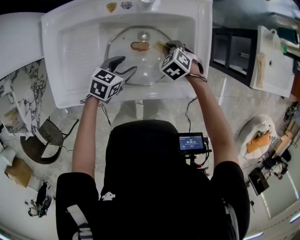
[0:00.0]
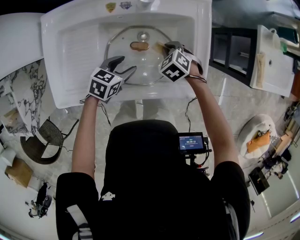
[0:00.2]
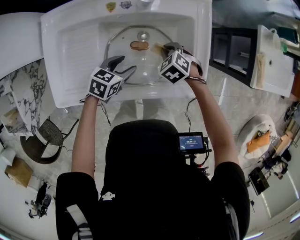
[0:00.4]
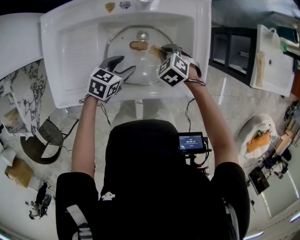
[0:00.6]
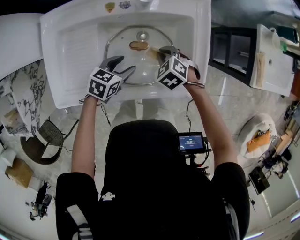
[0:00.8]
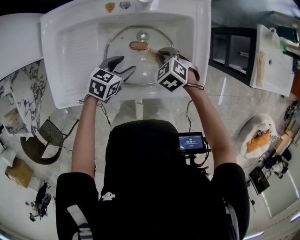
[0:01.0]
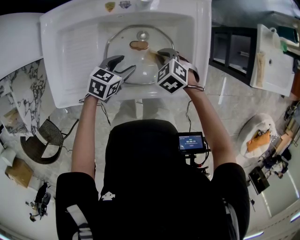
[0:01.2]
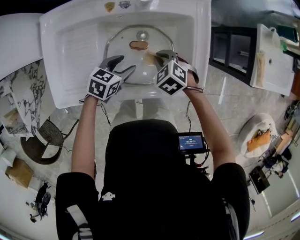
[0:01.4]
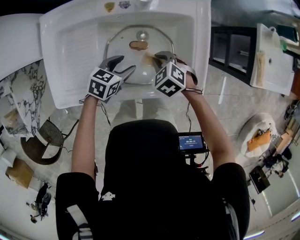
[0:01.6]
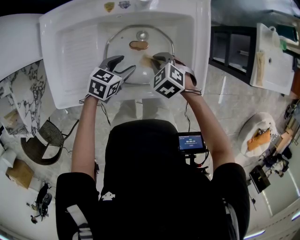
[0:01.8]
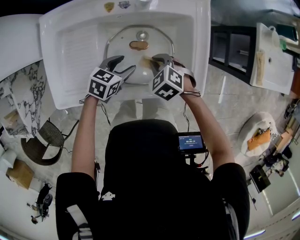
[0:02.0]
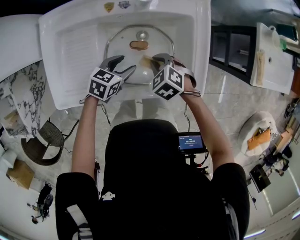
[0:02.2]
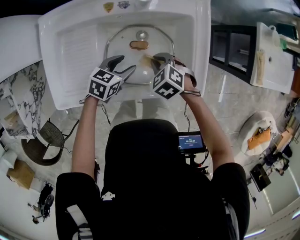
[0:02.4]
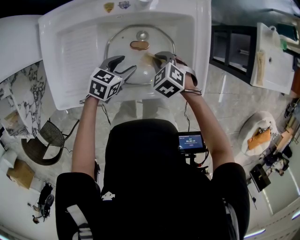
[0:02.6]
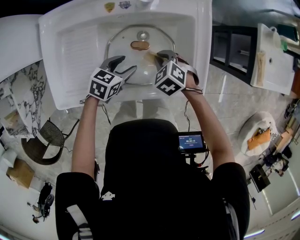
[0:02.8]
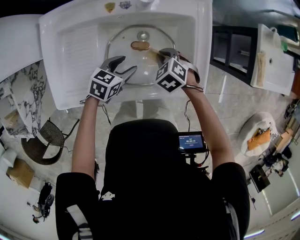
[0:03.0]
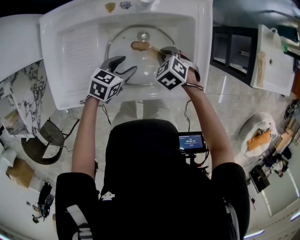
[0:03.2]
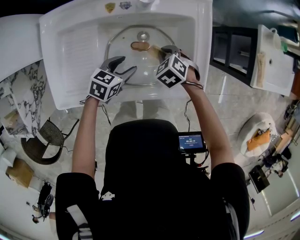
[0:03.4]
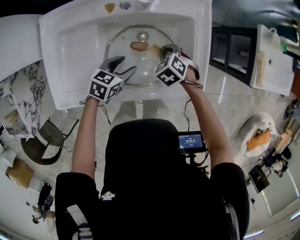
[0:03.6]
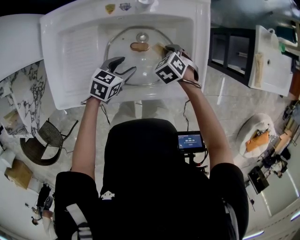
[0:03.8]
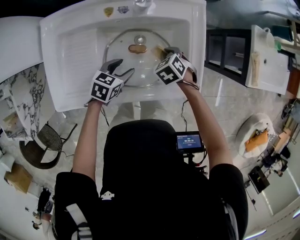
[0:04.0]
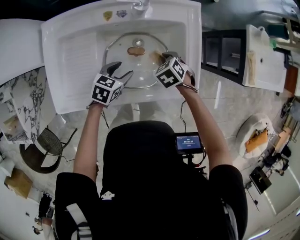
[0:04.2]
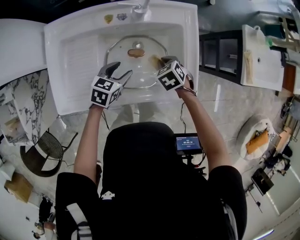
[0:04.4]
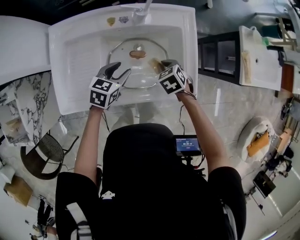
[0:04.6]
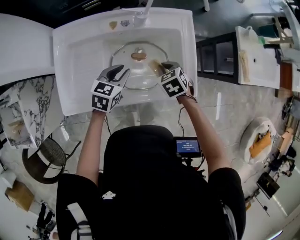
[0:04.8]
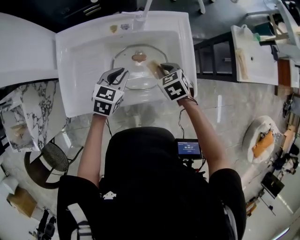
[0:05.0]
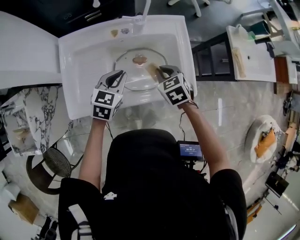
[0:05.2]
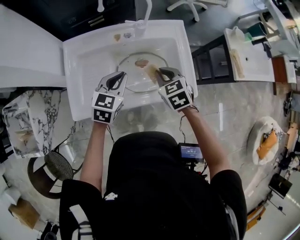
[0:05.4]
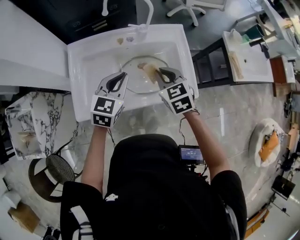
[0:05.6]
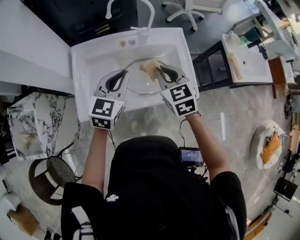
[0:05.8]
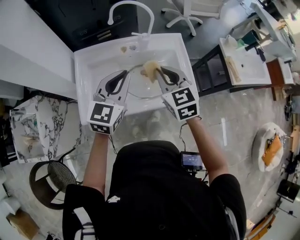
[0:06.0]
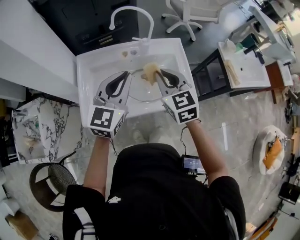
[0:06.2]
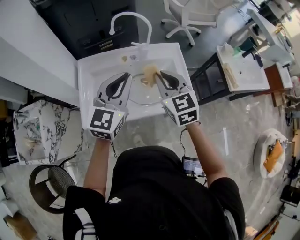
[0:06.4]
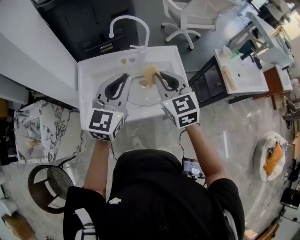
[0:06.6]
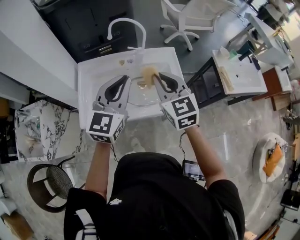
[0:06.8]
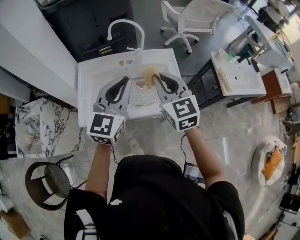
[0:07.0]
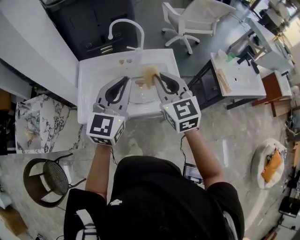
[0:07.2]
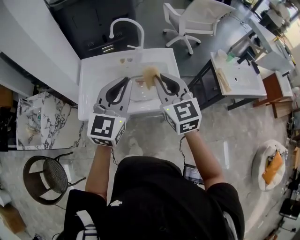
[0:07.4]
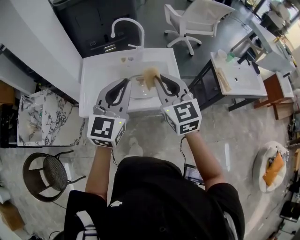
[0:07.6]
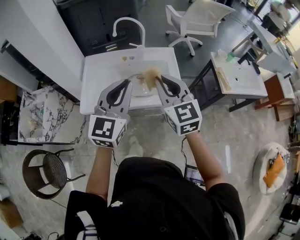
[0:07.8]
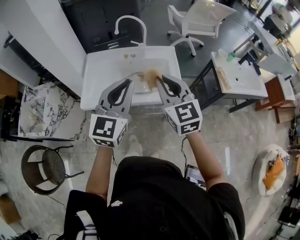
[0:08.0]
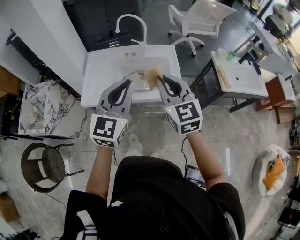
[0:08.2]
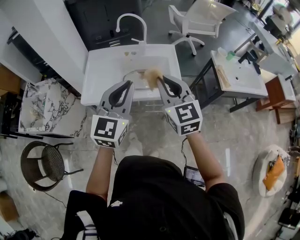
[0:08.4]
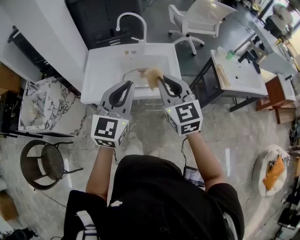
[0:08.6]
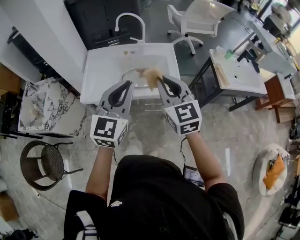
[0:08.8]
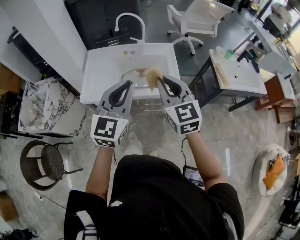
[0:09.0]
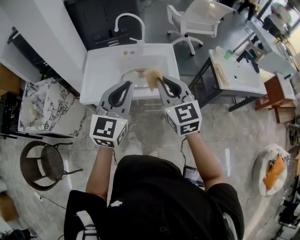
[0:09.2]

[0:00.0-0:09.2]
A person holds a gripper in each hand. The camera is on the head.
0.0 to 1.6 s: The right gripper goes roughly 5 cm backward.
1.6 to 3.0 s: The grippers make only small movements.
3.0 to 4.6 s: The left gripper travels upward by some 5 cm.
4.6 to 6.2 s: The grippers both shift upward by about 30 cm. The right gripper tips its fingers upward by roughly 50 degrees; the left gripper points its fingers some 40 degrees further upward, and closes up.
6.2 to 7.6 s: Both grippers travel together backward, upward and to the right, about 15 cm.
7.6 to 9.2 s: The two grippers go approximately 10 cm backward.

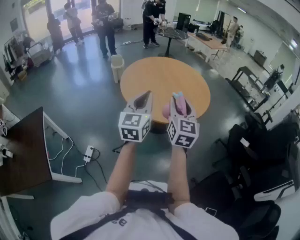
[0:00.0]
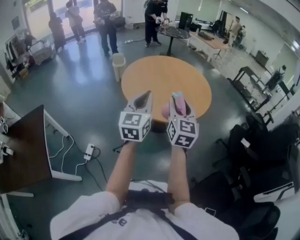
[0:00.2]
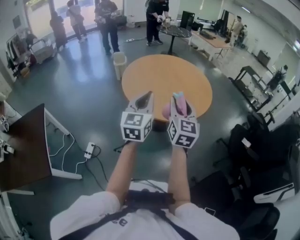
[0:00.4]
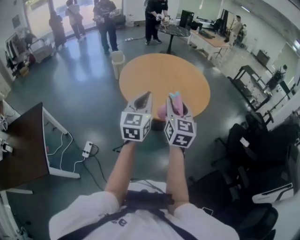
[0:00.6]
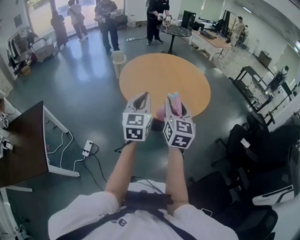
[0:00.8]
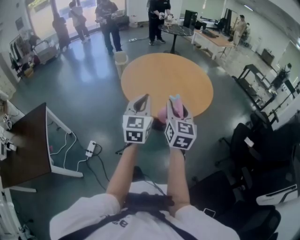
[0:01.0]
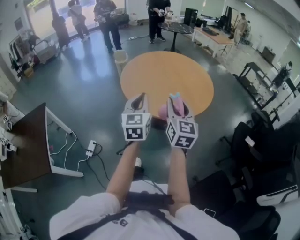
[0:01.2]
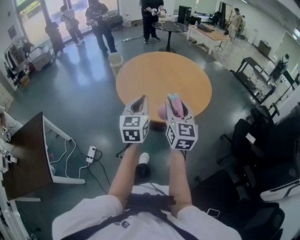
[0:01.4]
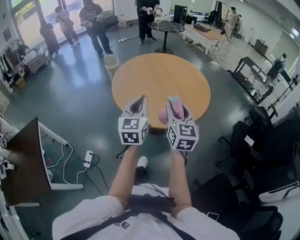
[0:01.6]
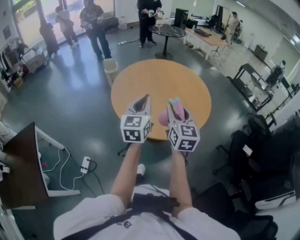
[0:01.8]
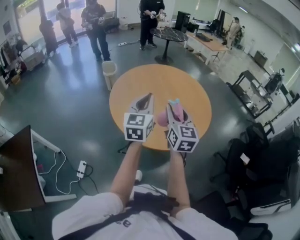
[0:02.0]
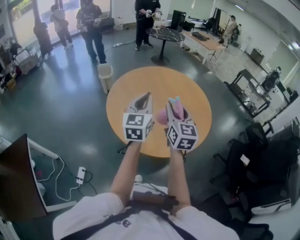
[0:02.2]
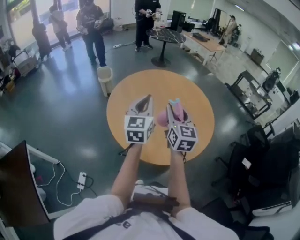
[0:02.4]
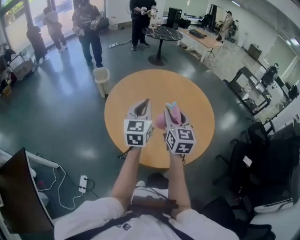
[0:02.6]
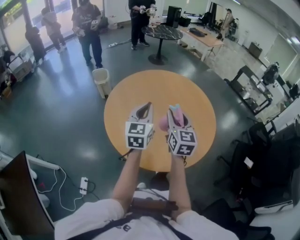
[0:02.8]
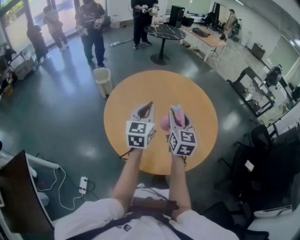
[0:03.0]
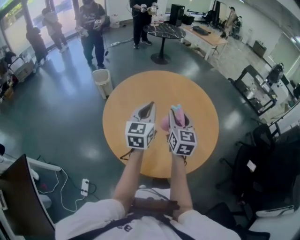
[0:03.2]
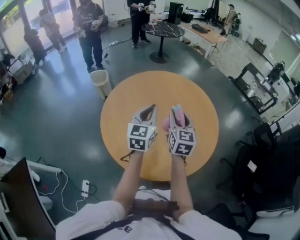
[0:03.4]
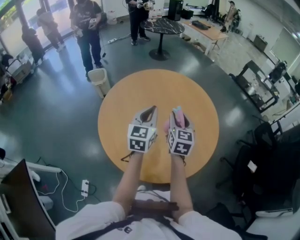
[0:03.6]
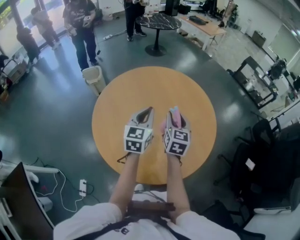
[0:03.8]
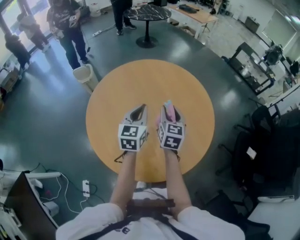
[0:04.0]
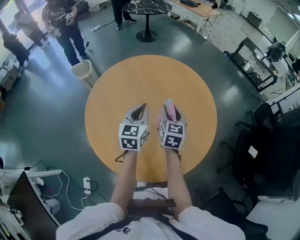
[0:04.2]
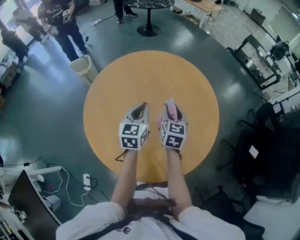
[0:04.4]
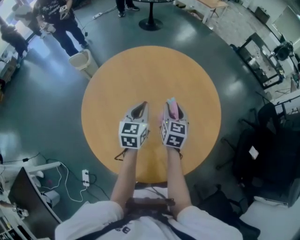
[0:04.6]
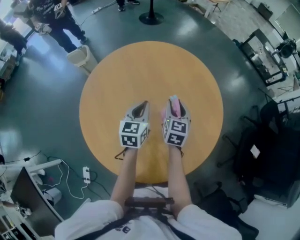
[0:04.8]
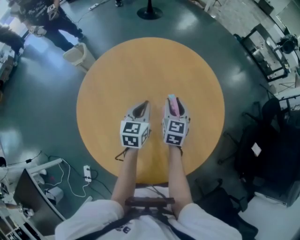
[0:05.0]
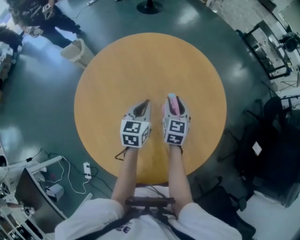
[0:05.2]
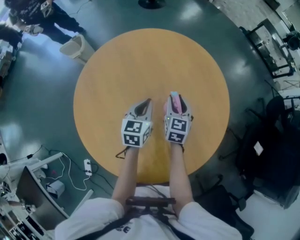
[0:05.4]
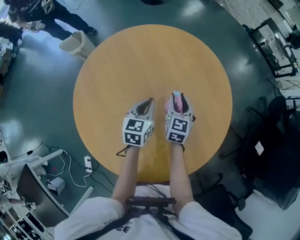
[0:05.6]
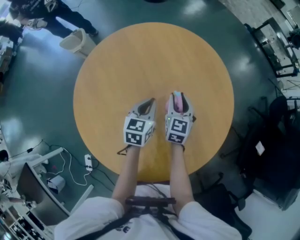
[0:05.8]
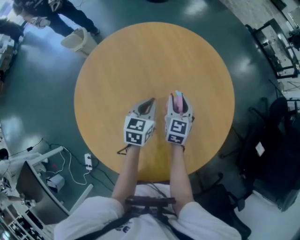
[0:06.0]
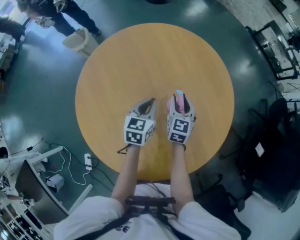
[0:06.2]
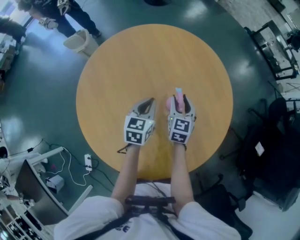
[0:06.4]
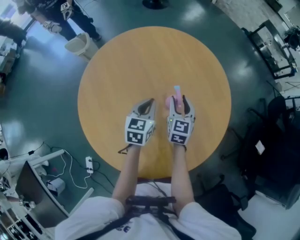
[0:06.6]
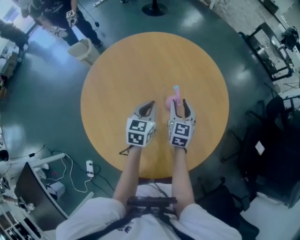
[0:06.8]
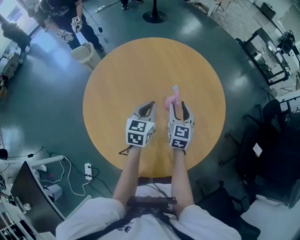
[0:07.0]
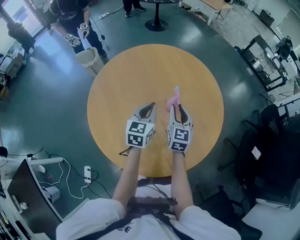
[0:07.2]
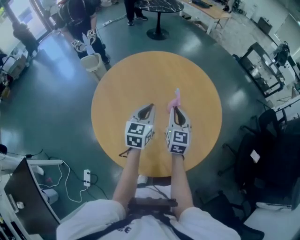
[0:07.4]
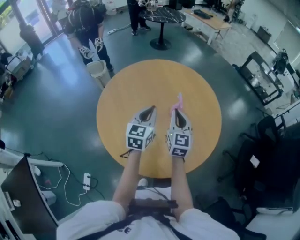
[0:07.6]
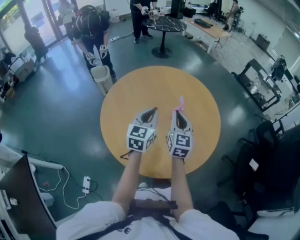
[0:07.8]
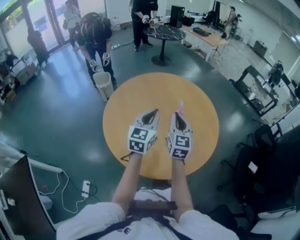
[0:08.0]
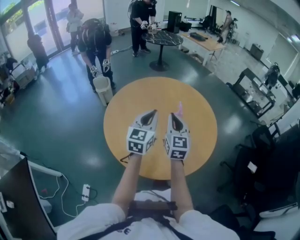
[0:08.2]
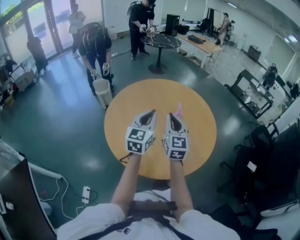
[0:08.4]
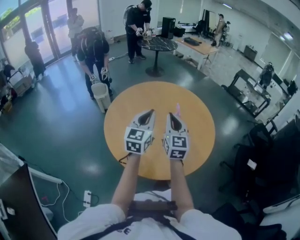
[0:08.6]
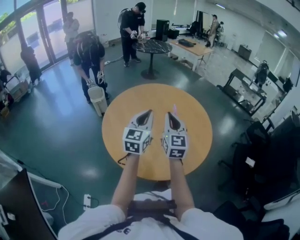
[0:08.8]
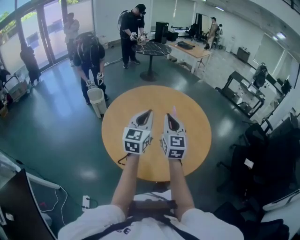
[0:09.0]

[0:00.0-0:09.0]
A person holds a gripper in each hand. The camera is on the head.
0.0 to 1.6 s: The left gripper is displaced forward and downward by about 10 cm, while the right gripper shifts roughly 10 cm forward.
1.6 to 3.0 s: The grippers both shift forward by roughly 30 cm.
3.0 to 4.4 s: The left gripper heads forward, downward and to the right, covering about 20 cm. The right gripper moves forward and downward, about 20 cm, and rotates about 20 degrees.
4.4 to 6.0 s: Both grippers travel together downward and forward, about 15 cm.
6.0 to 7.6 s: Both grippers move upward and backward, roughly 20 cm. The left gripper rotates some 20 degrees, while the right gripper closes its fingers.
7.6 to 9.0 s: The right gripper moves upward, backward and to the left, some 15 cm, while the left gripper is displaced upward and backward by about 15 cm.

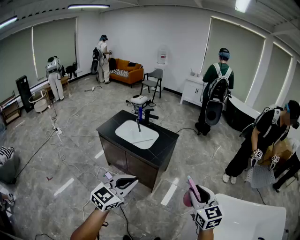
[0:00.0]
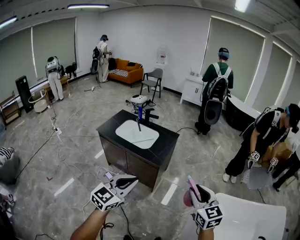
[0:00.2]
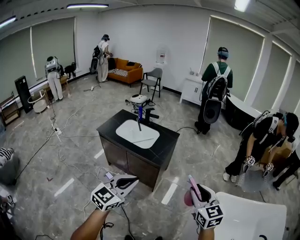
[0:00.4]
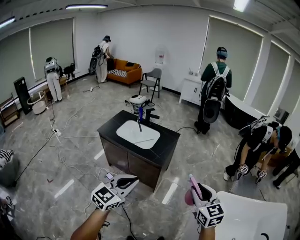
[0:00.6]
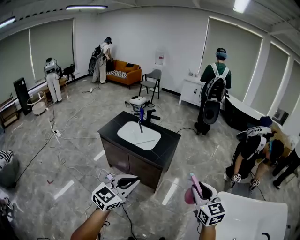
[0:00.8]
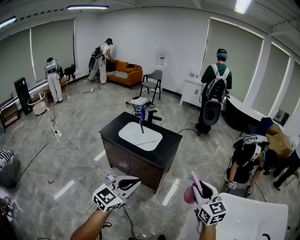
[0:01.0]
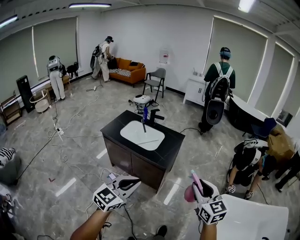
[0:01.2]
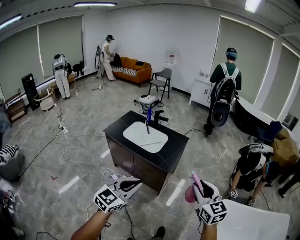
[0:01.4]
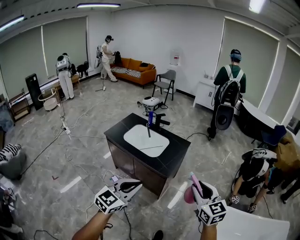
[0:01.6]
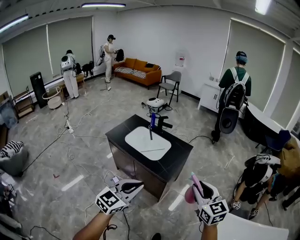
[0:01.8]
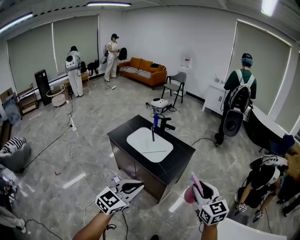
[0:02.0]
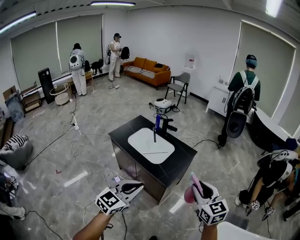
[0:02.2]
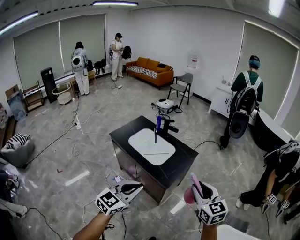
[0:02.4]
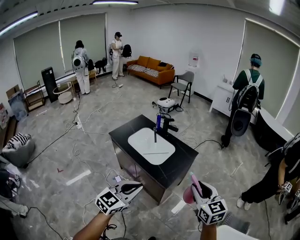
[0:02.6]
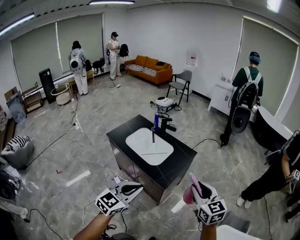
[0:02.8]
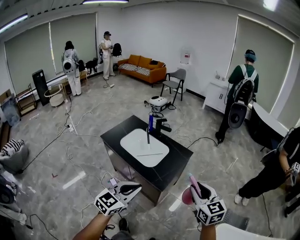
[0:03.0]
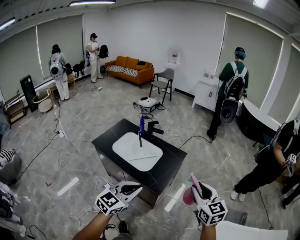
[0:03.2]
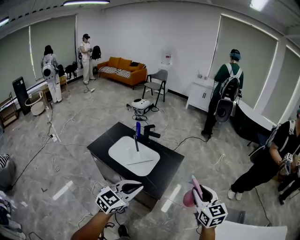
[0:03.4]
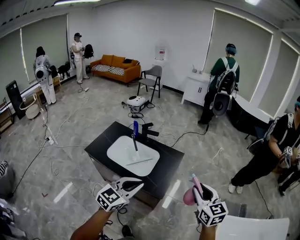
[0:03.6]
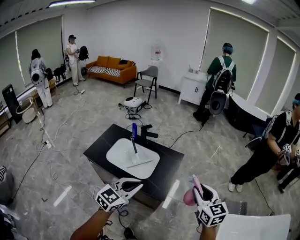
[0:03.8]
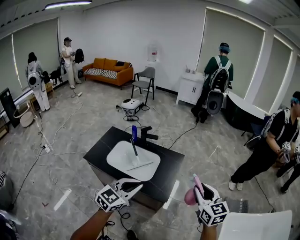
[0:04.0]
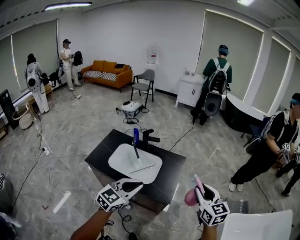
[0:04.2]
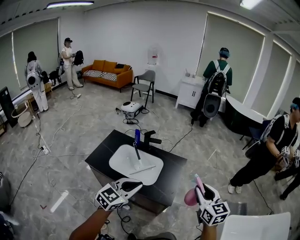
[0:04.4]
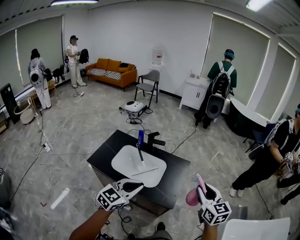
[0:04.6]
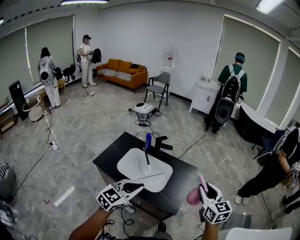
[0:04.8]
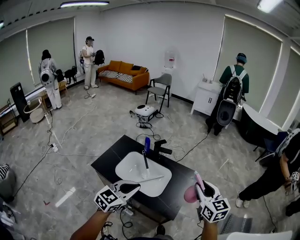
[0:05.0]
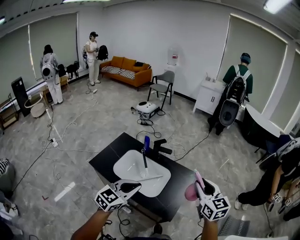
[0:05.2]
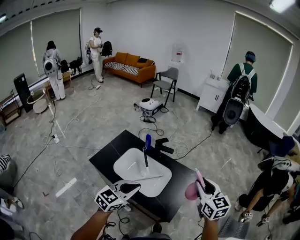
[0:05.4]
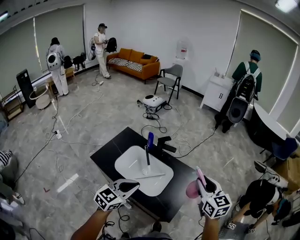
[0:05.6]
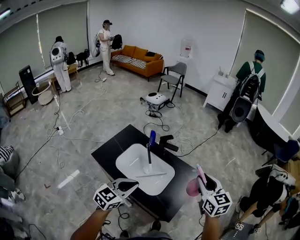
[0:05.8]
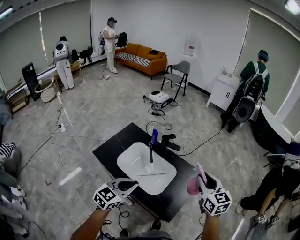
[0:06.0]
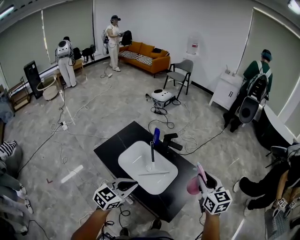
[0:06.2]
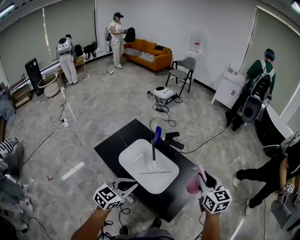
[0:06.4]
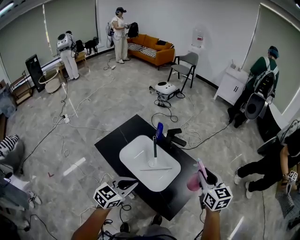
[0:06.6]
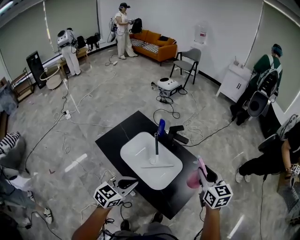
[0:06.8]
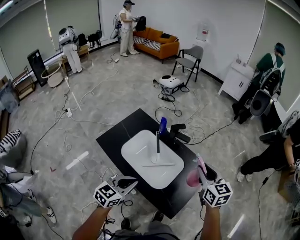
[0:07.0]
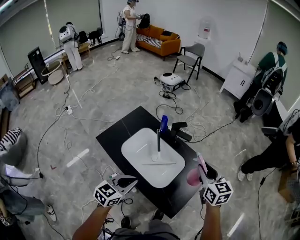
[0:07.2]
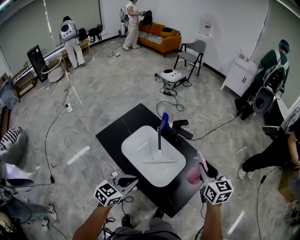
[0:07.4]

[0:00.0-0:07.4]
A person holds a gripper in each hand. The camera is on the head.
0.0 to 1.4 s: The left gripper changes place by approximately 5 cm, while the right gripper heads forward and to the left, covering approximately 10 cm.
1.4 to 3.0 s: Both grippers move forward, about 20 cm.
3.0 to 4.4 s: The left gripper goes about 20 cm to the left and forward, while the right gripper heads to the left and forward, covering roughly 15 cm, and turns by some 20 degrees.
4.4 to 6.0 s: The left gripper is displaced forward, downward and to the left by roughly 15 cm, and changes its angle by roughly 20 degrees. The right gripper is displaced forward by approximately 25 cm.
6.0 to 7.4 s: The left gripper heads downward, covering about 10 cm; the right gripper shifts approximately 15 cm downward and forward.
